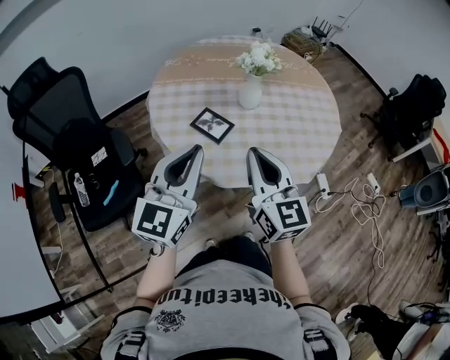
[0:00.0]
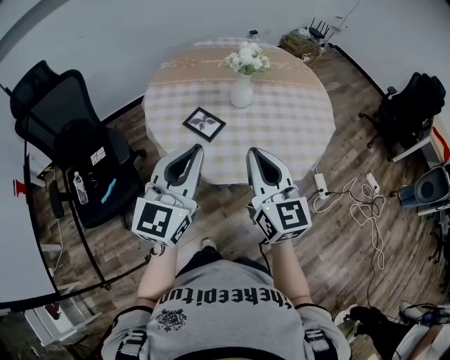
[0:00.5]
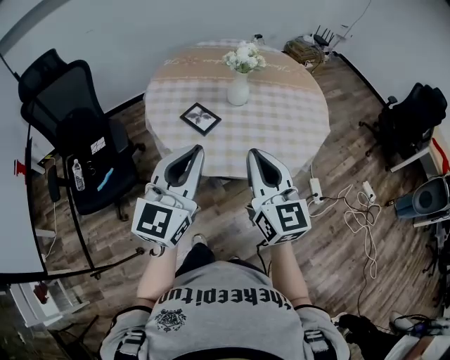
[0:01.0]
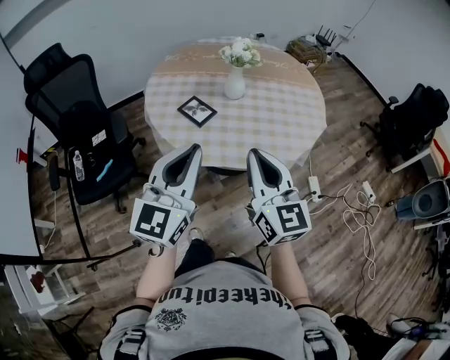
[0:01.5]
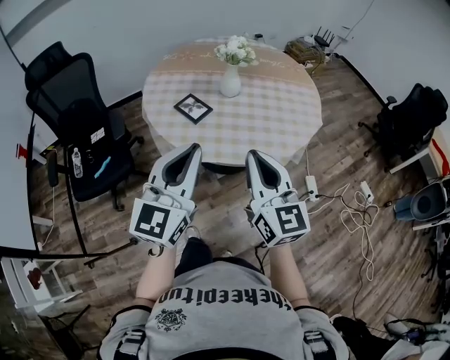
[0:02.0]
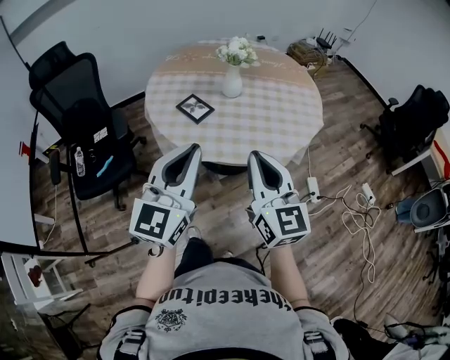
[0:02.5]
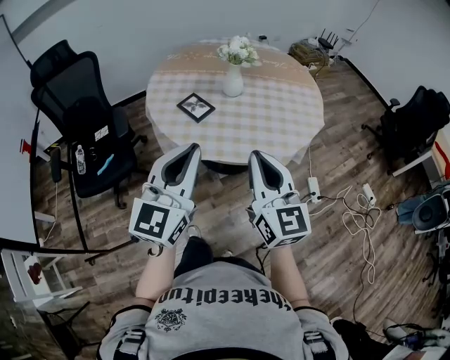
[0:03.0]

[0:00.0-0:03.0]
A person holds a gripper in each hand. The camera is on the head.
0:00.0 to 0:01.5: The right gripper heads to the right and backward, covering about 15 cm; the left gripper is displaced backward and to the right by about 15 cm.
0:01.5 to 0:03.0: The grippers move only a little.

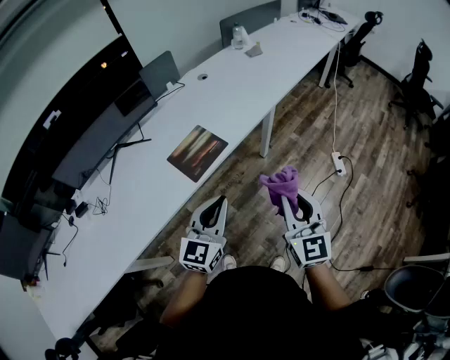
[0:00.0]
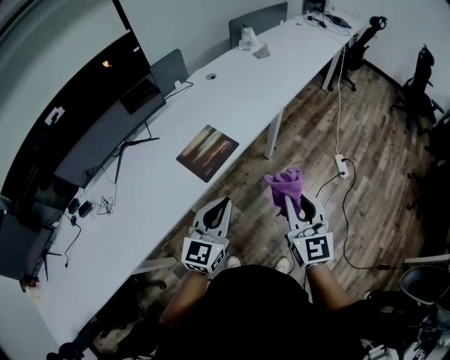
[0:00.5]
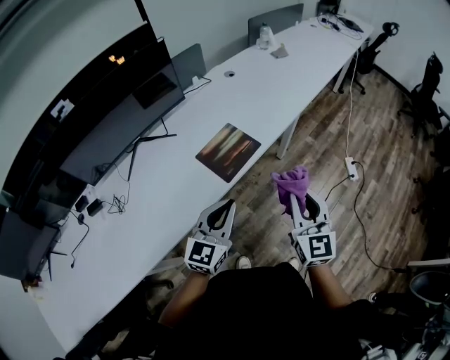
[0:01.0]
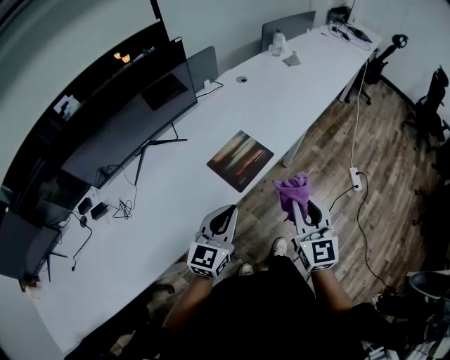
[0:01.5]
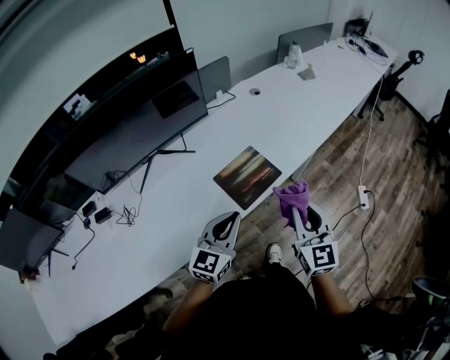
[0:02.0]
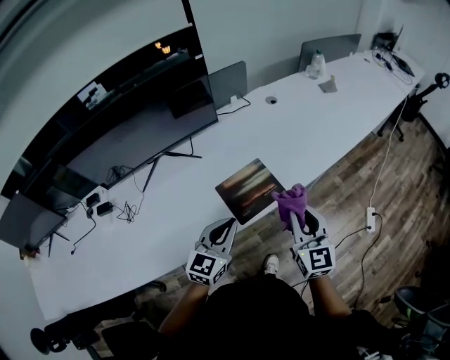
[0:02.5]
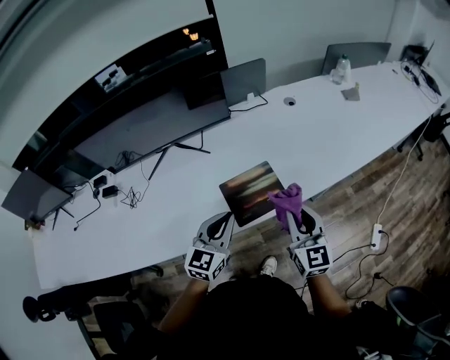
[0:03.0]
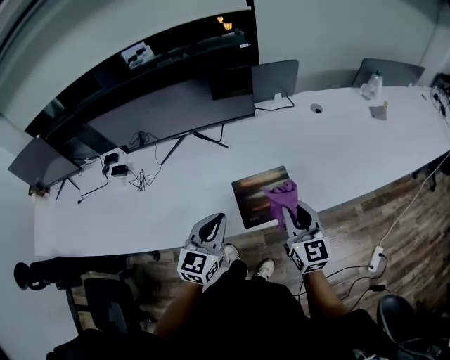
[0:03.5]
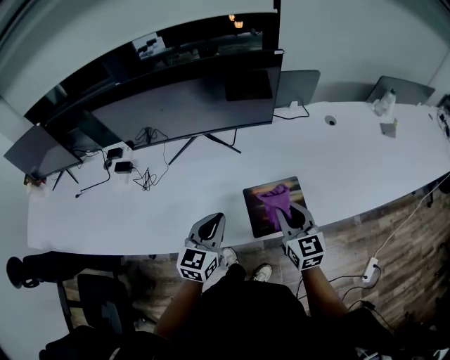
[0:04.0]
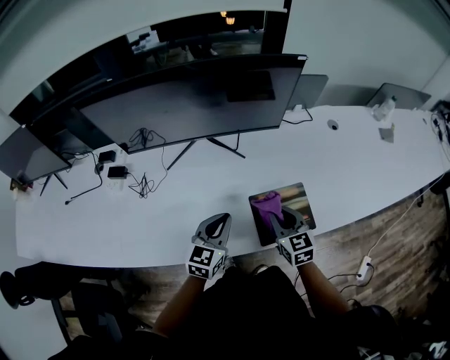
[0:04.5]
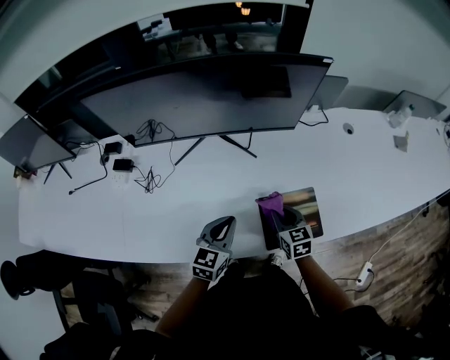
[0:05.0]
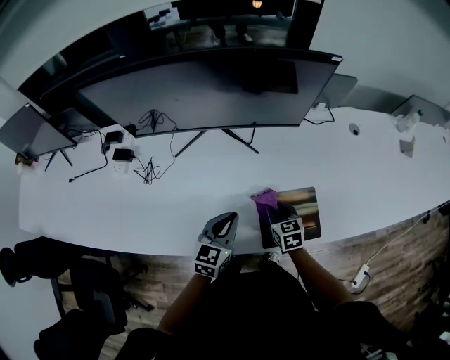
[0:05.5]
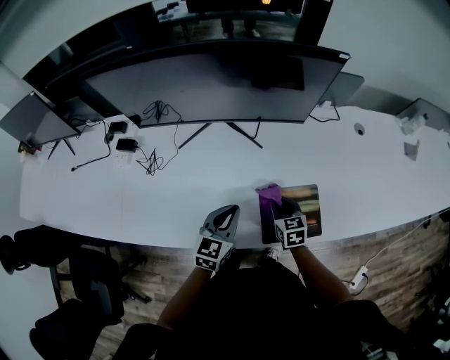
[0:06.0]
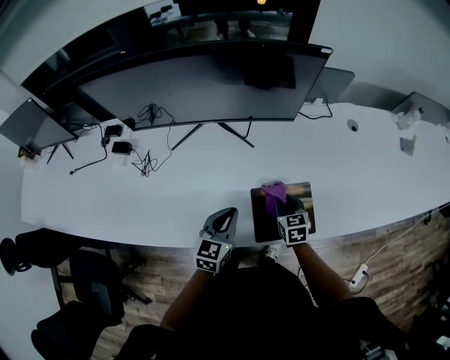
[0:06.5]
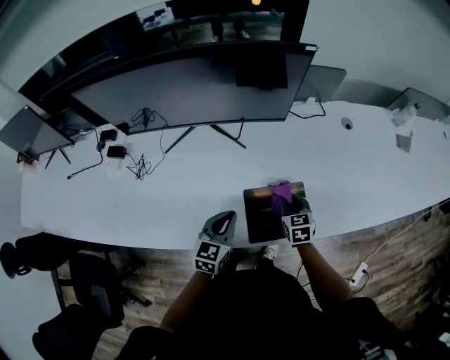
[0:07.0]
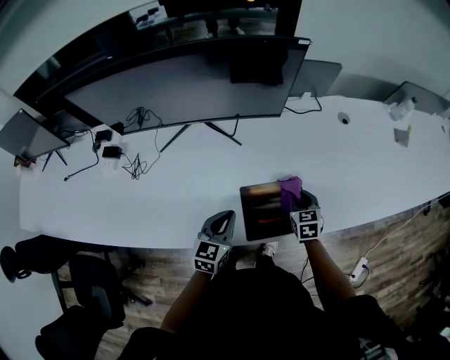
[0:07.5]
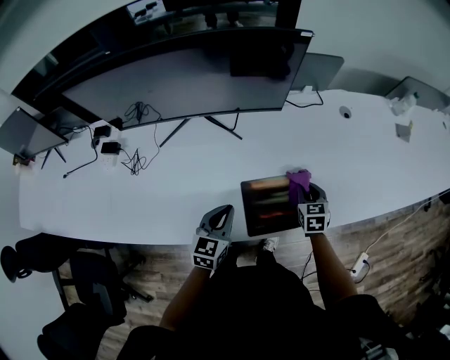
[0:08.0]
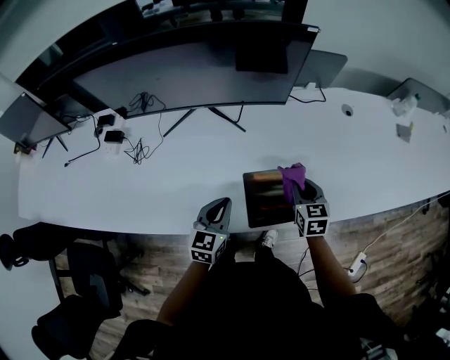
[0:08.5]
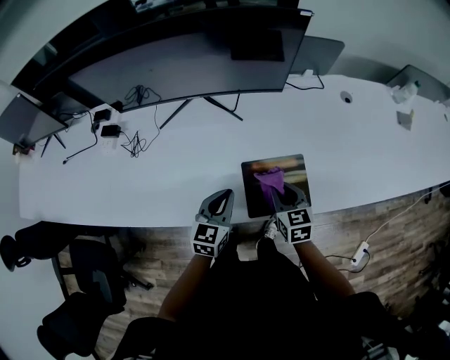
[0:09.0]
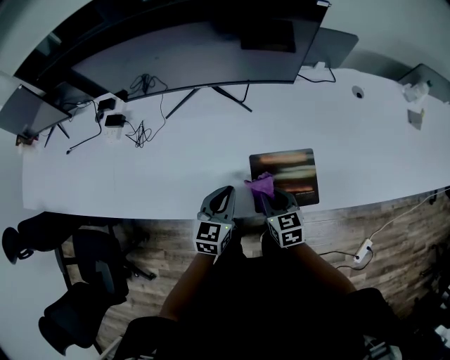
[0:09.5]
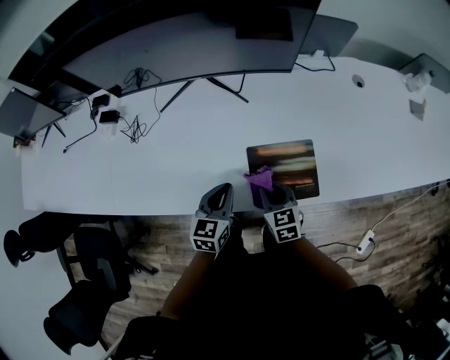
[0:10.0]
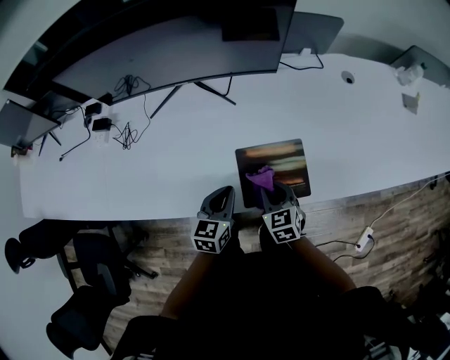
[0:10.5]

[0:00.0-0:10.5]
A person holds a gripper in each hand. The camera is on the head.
0:00.0 to 0:02.0: The left gripper moves to the left, some 15 cm, while the right gripper goes roughly 20 cm to the left and forward.
0:02.0 to 0:04.0: The left gripper shifts by roughly 15 cm, and rotates roughly 40 degrees. The right gripper moves some 20 cm, and swivels approximately 40 degrees.
0:04.0 to 0:06.5: The left gripper heads downward, covering some 10 cm, while the right gripper goes roughly 20 cm downward and forward, and turns by about 20 degrees.
0:06.5 to 0:08.5: The right gripper moves to the right and upward, approximately 10 cm.
0:08.5 to 0:10.5: The left gripper moves roughly 5 cm. Meanwhile the right gripper shifts some 15 cm backward, to the left and downward.

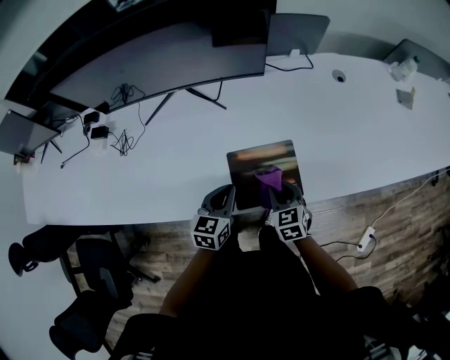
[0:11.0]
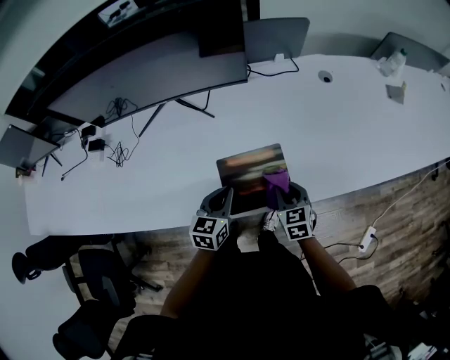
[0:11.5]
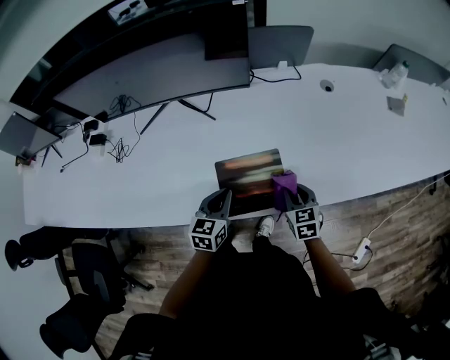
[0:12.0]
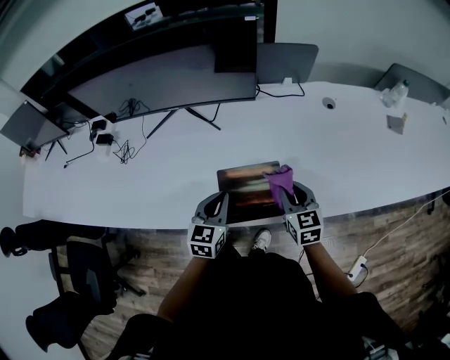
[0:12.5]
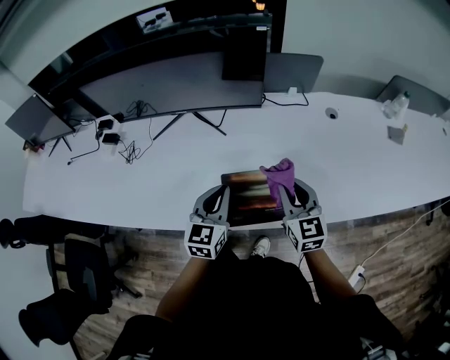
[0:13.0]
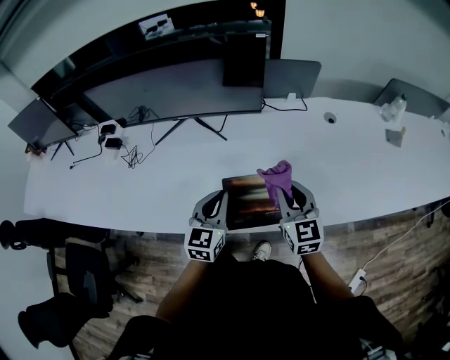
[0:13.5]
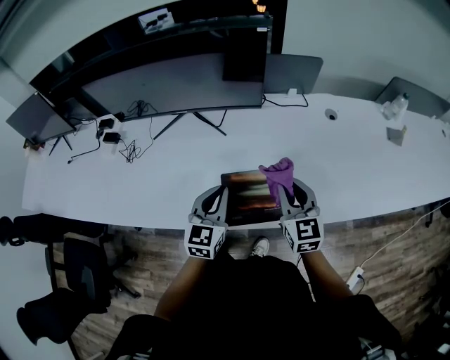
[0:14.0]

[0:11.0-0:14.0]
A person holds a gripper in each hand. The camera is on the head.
0:11.0 to 0:12.5: The right gripper heads upward and to the right, covering about 10 cm; the left gripper changes place by approximately 5 cm.
0:12.5 to 0:14.0: Both grippers move upward, roughly 10 cm.

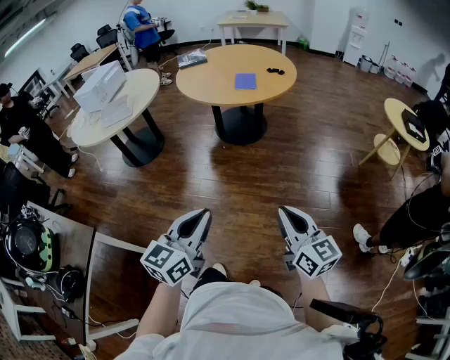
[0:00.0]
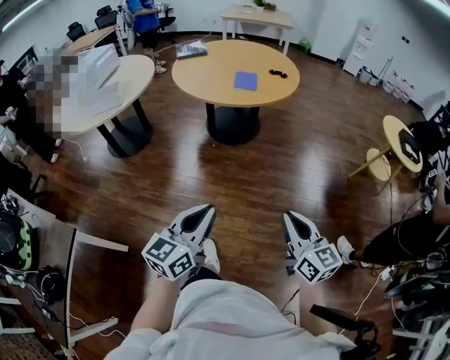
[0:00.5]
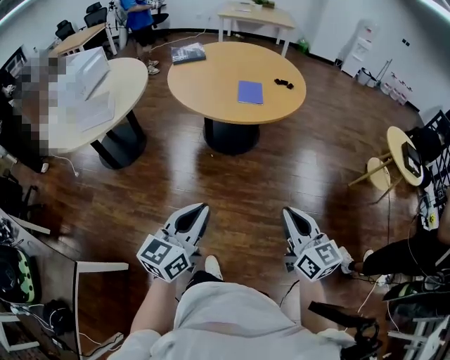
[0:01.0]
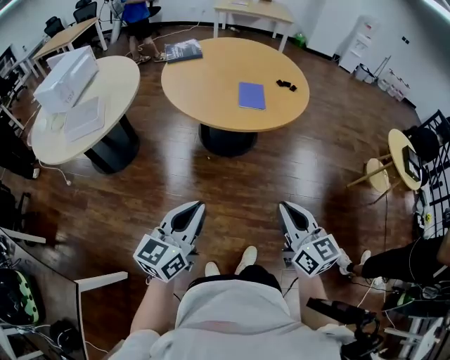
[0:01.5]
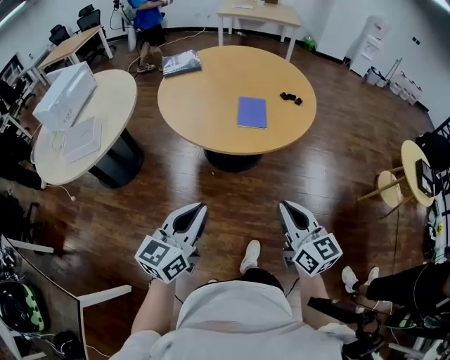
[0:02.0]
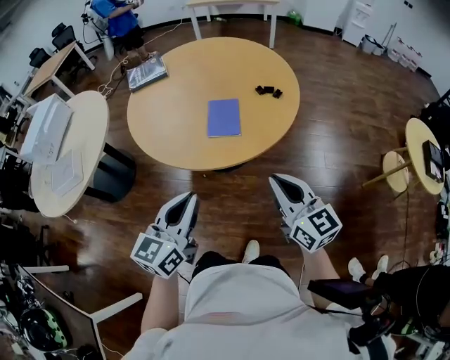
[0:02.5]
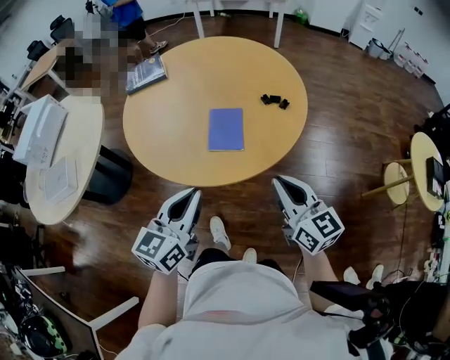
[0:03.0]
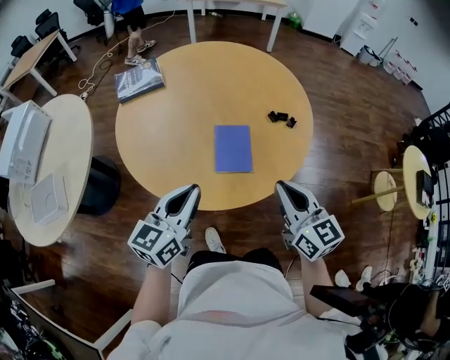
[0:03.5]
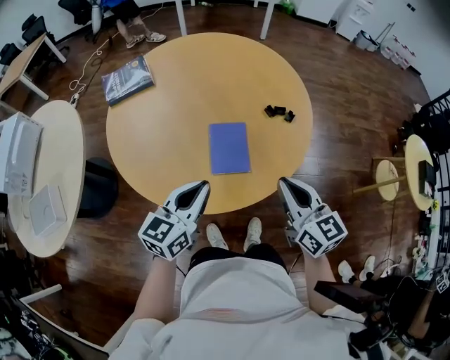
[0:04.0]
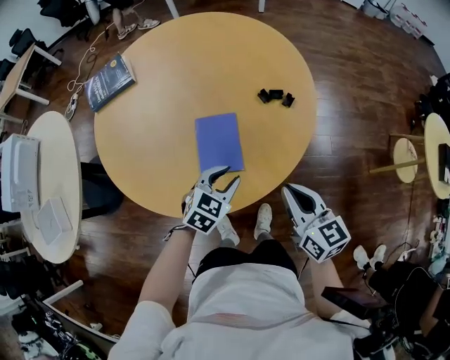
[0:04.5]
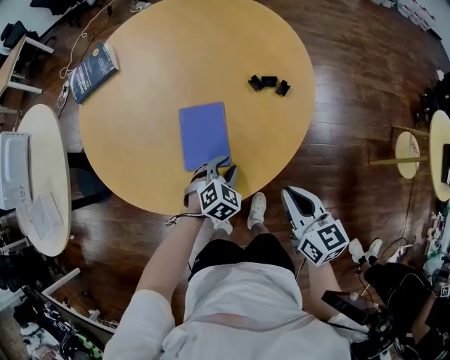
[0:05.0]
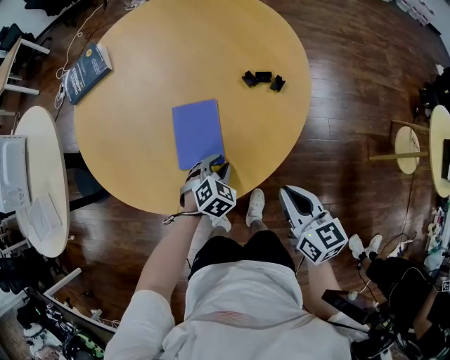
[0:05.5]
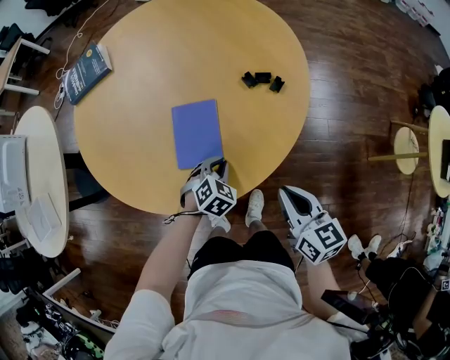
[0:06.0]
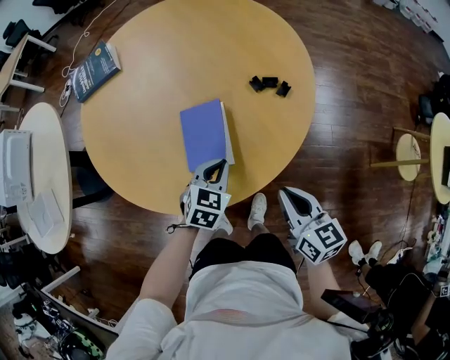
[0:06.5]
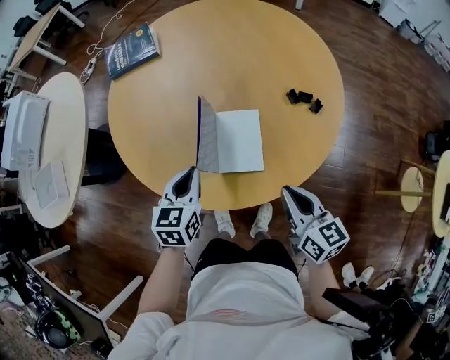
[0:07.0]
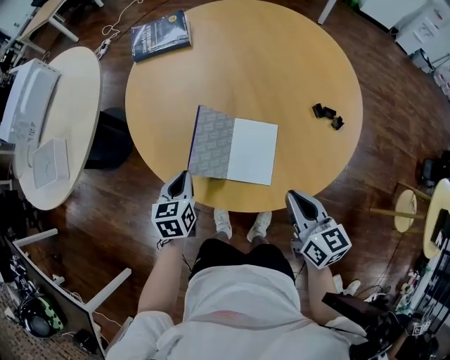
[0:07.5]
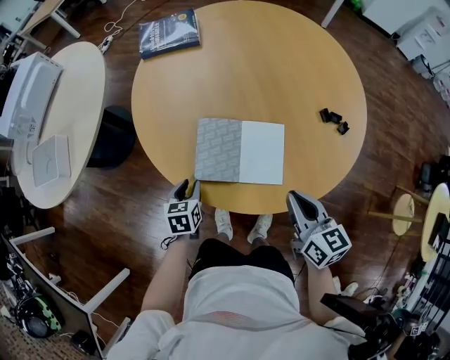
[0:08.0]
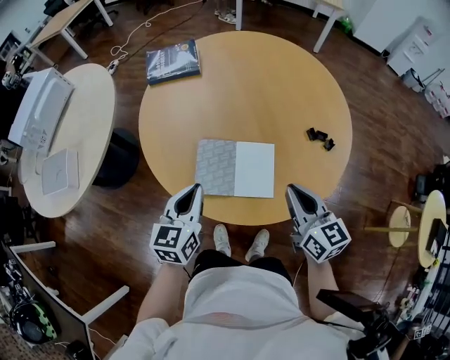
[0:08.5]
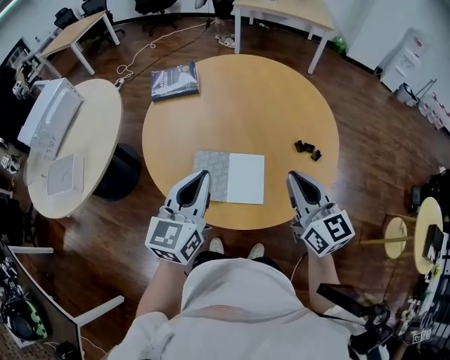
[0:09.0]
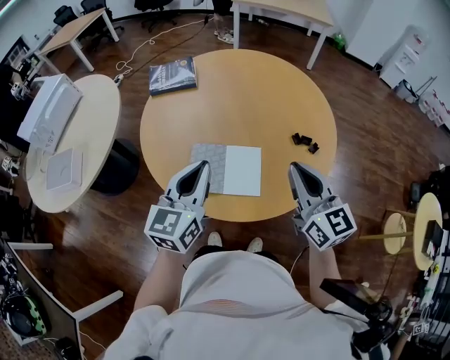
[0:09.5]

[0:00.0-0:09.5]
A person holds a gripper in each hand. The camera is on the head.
0:00.0 to 0:02.0: The pair of grippers is taken forward, approximately 50 cm.
0:02.0 to 0:04.0: Both grippers travel together forward, some 40 cm.
0:04.0 to 0:05.5: The left gripper is displaced downward and to the right by roughly 30 cm, tips its fingers downward by roughly 50 degrees, and opens its fingers, while the right gripper heads downward and to the right, covering about 20 cm.
0:05.5 to 0:07.5: The right gripper goes about 15 cm to the left; the left gripper moves to the left, roughly 30 cm, rolls counterclockwise, seen from behind, by roughly 60 degrees, and closes.
0:07.5 to 0:09.5: The grippers both shift upward by some 25 cm. The left gripper tilts its fingers some 30 degrees upward, and opens, then closes once more. The right gripper rotates roughly 30 degrees.
